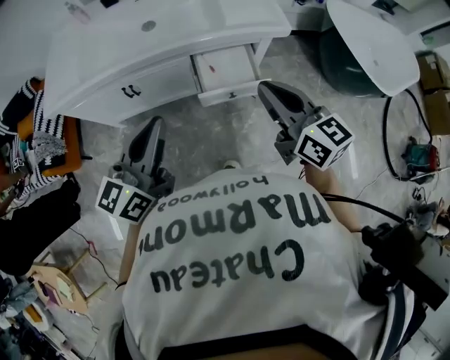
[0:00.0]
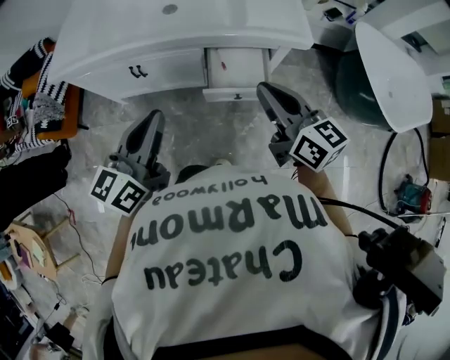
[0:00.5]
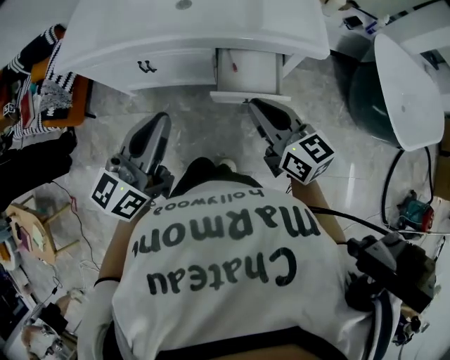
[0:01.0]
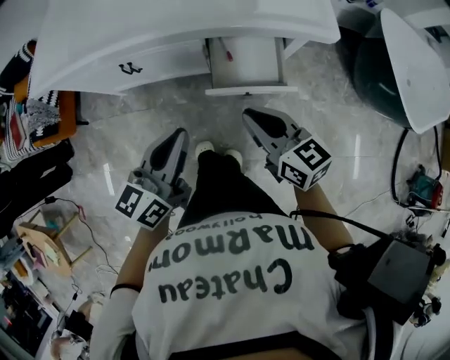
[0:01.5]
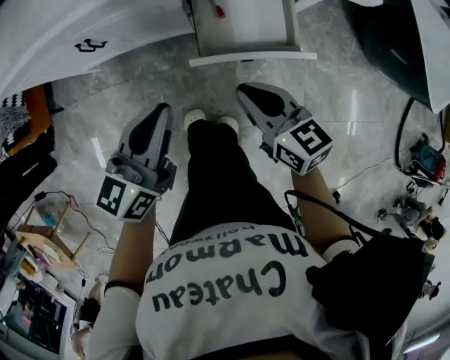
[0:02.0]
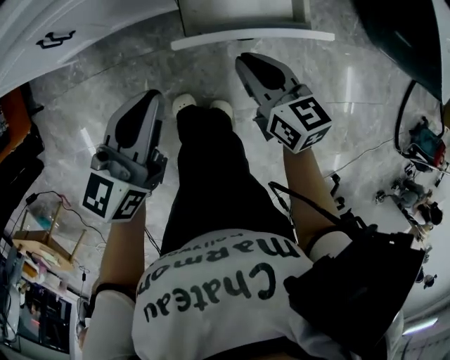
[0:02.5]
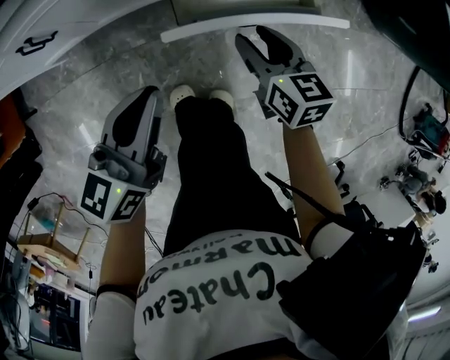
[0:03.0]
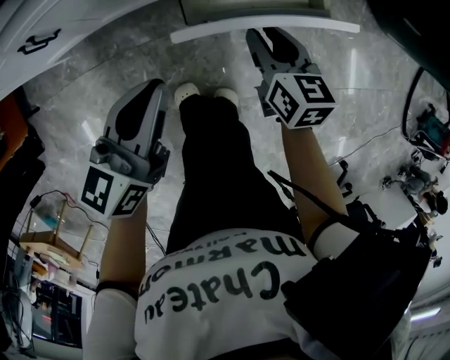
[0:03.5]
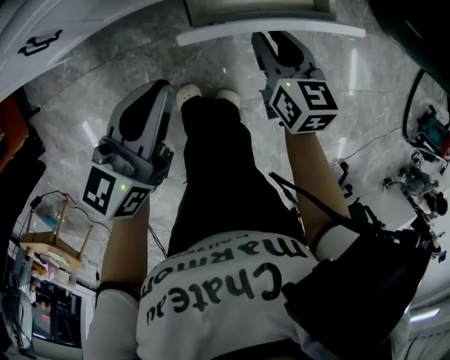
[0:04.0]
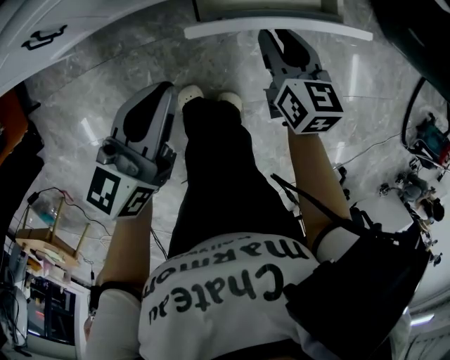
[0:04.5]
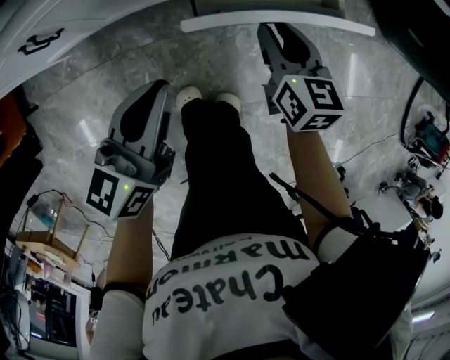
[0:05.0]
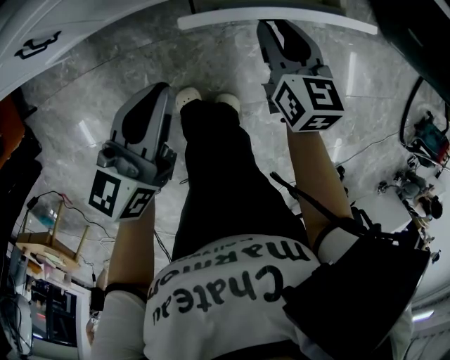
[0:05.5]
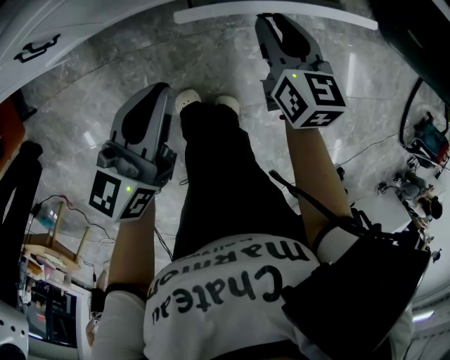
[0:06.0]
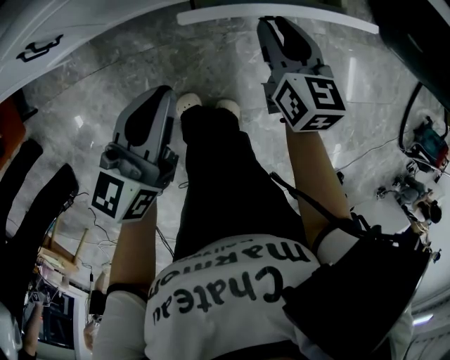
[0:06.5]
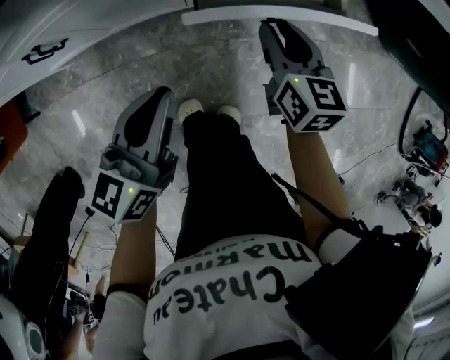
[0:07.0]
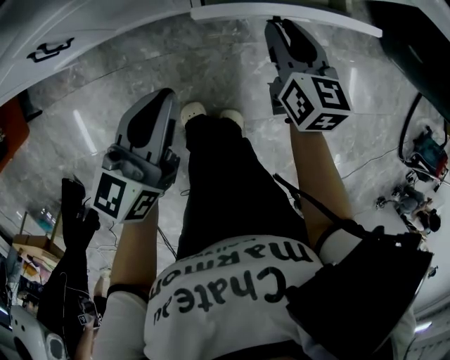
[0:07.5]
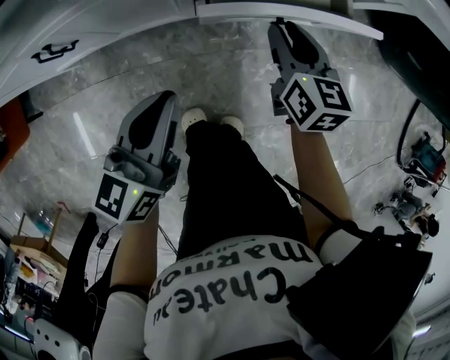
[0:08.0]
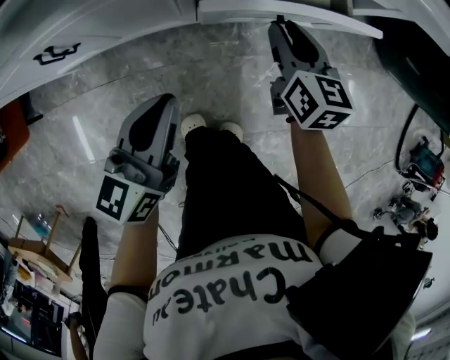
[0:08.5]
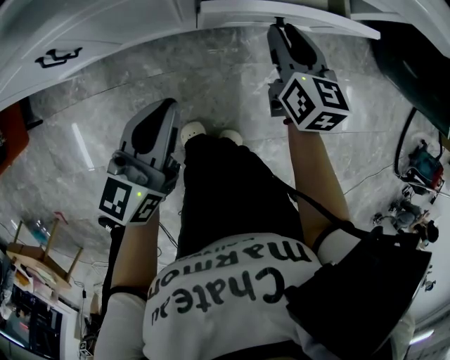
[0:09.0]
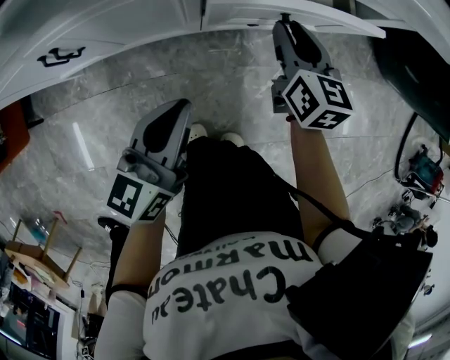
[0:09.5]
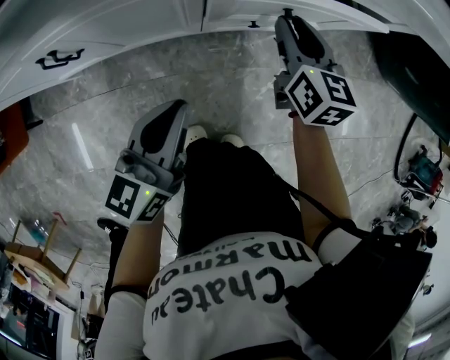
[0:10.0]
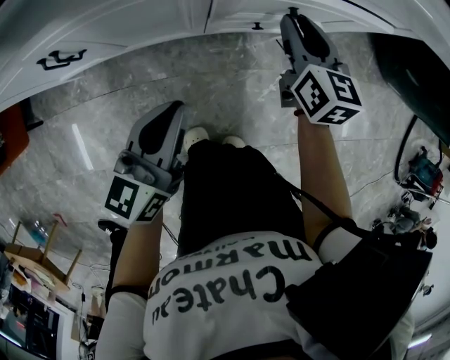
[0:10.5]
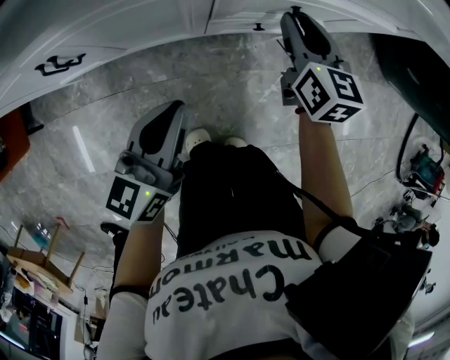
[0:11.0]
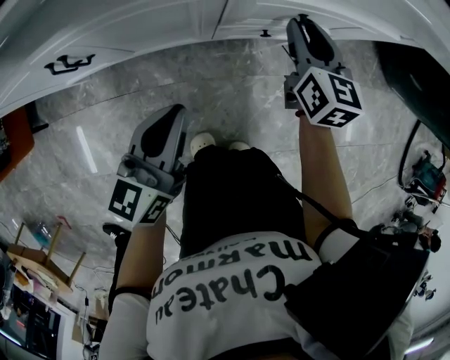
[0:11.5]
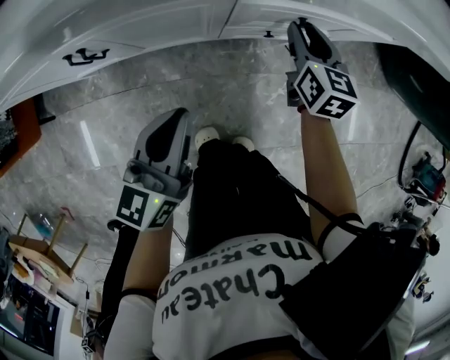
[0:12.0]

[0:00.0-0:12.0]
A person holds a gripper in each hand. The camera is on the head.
0:00.0 to 0:02.0: Both grippers move downward, approximately 25 cm. The right gripper swivels roughly 20 degrees.
0:02.0 to 0:04.0: The right gripper shifts some 15 cm downward and forward, swivels approximately 30 degrees, and opens its fingers. Meanwhile the left gripper goes approximately 10 cm downward.
0:04.0 to 0:06.0: The right gripper travels forward by roughly 5 cm.
0:06.0 to 0:08.0: The grippers stay close to where they were, moving slightly.
0:08.0 to 0:10.0: The right gripper shifts approximately 5 cm forward.
0:10.0 to 0:12.0: The grippers stay close to where they were, moving slightly.

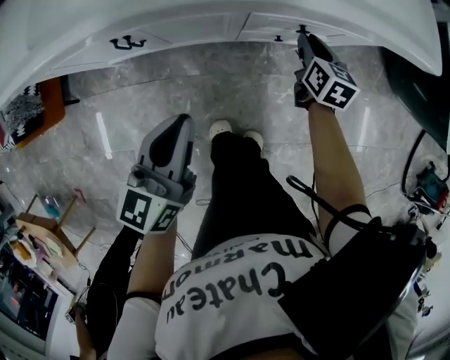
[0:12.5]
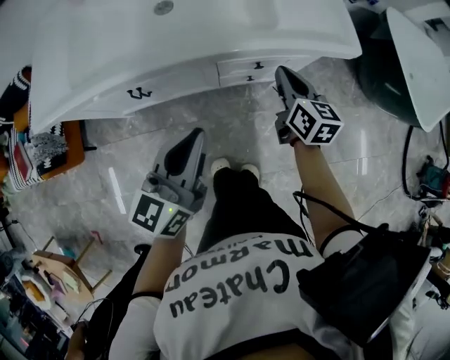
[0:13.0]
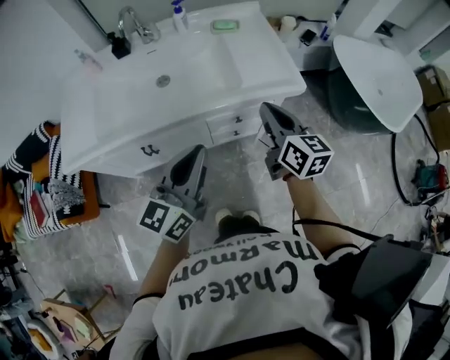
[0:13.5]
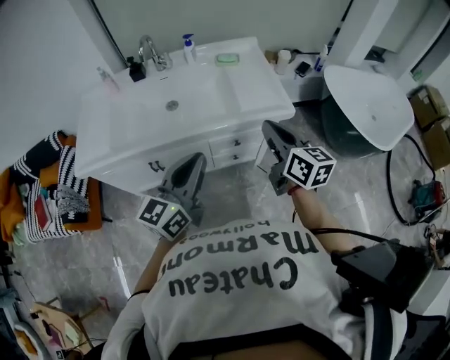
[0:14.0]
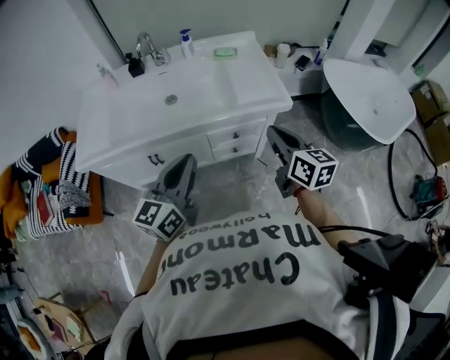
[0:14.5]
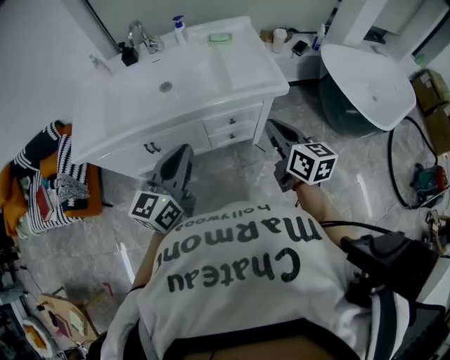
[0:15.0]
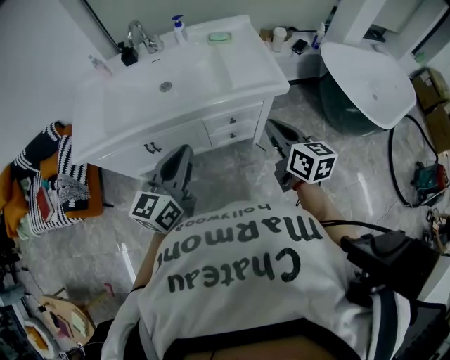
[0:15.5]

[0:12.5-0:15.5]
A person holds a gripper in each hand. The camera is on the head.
0:12.5 to 0:14.0: The two grippers go approximately 35 cm upward. The right gripper turns by some 30 degrees. The left gripper turns by approximately 30 degrees.
0:14.0 to 0:15.5: The right gripper is displaced downward by about 5 cm.

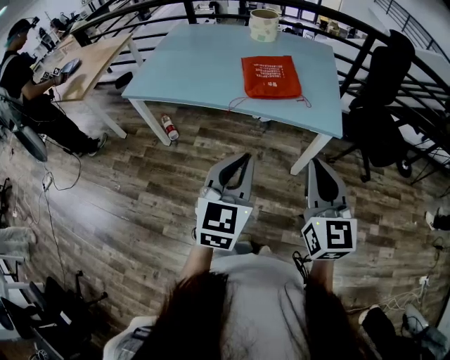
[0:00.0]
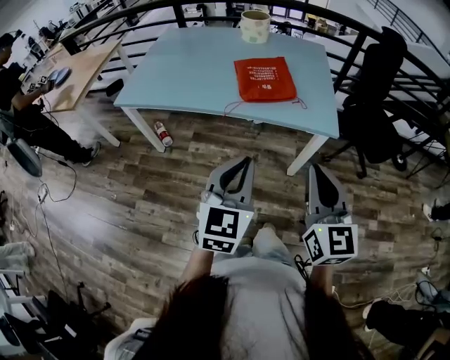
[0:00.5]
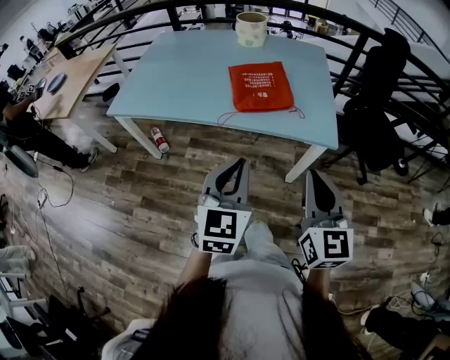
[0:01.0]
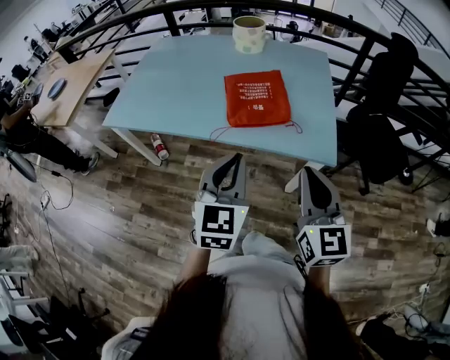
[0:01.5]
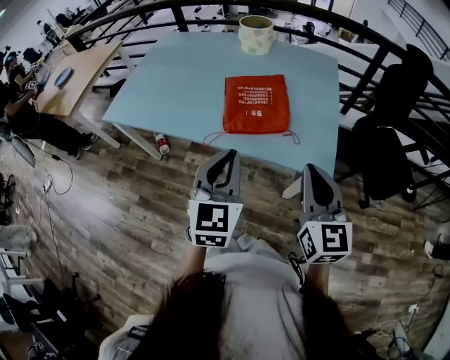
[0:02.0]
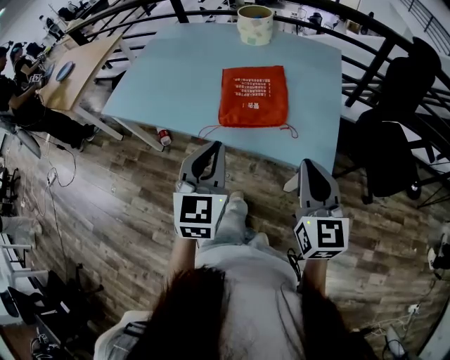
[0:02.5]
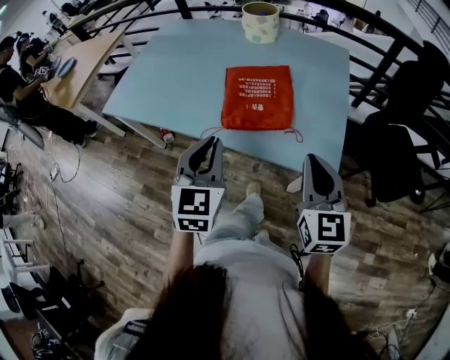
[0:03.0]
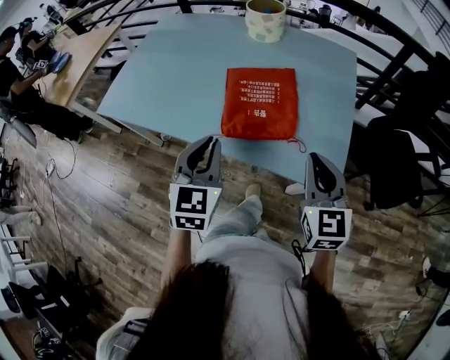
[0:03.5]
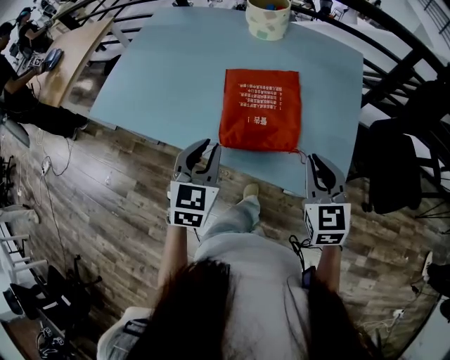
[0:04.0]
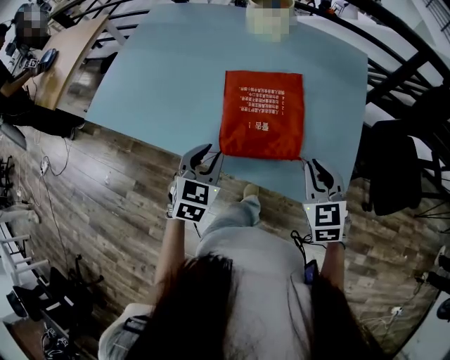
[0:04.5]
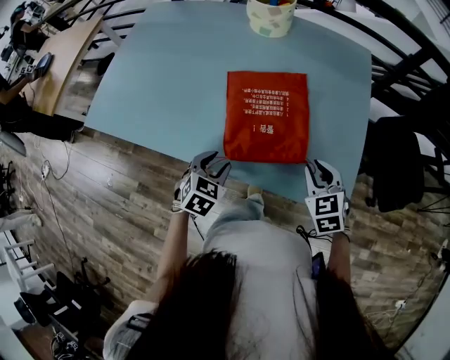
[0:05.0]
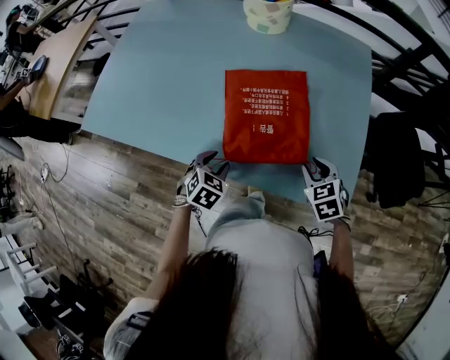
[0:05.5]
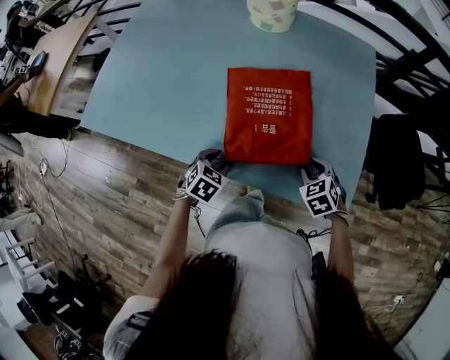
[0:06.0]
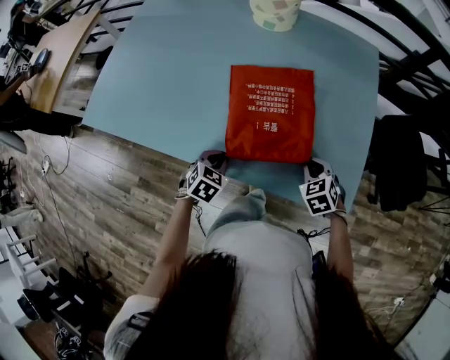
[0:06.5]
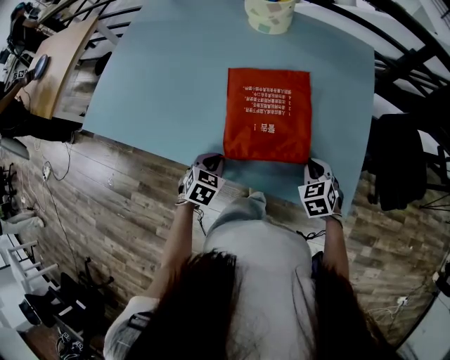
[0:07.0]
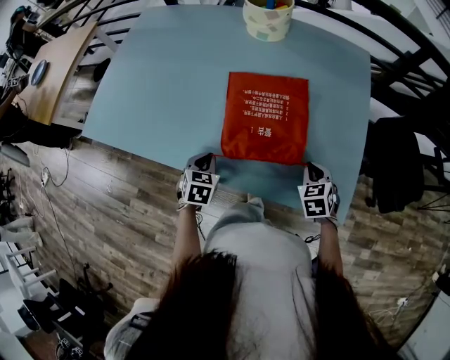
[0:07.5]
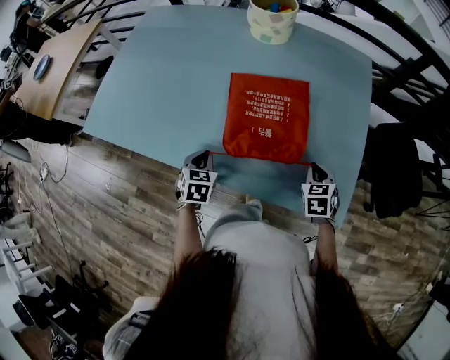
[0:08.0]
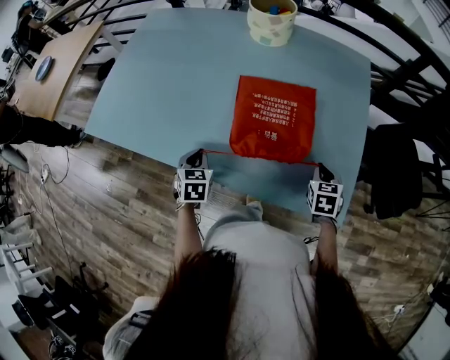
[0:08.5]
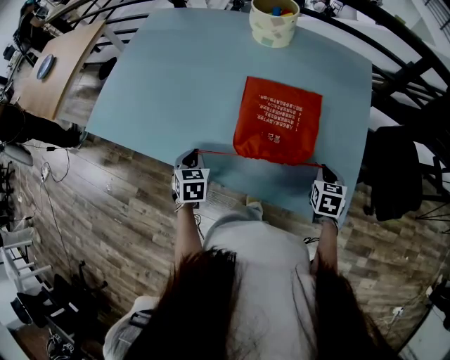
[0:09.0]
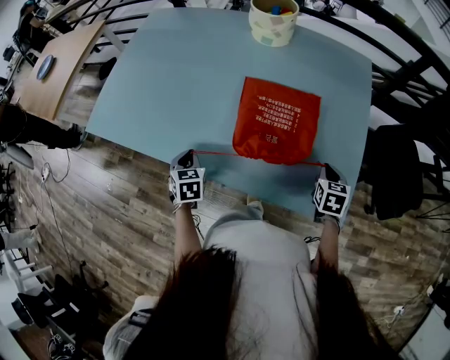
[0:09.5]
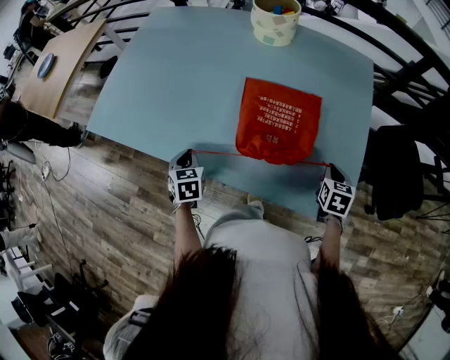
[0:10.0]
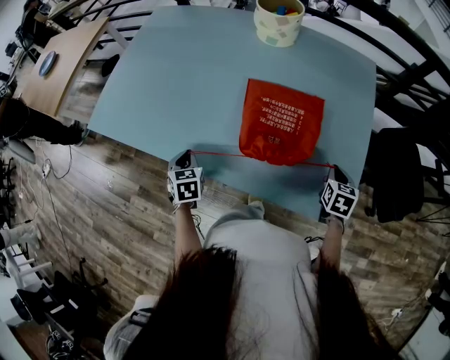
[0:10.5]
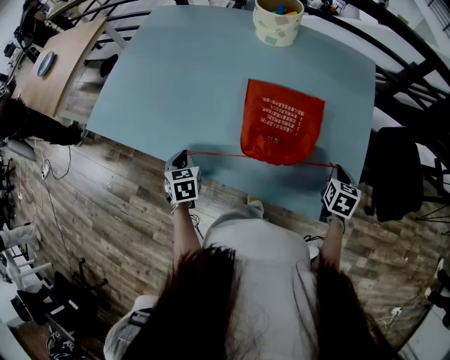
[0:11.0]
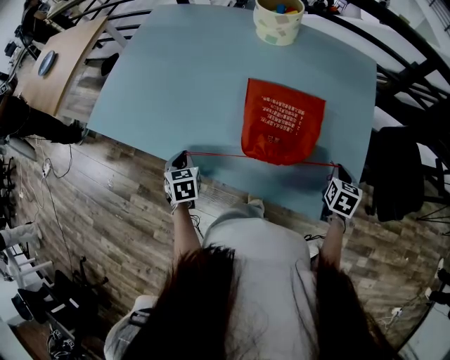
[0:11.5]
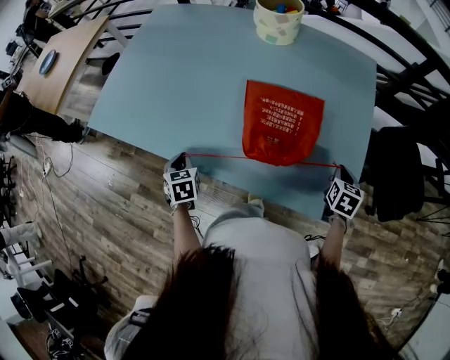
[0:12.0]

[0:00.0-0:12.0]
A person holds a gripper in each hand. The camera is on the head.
0:00.0 to 0:02.0: The left gripper shifts some 20 cm forward; the right gripper shifts roughly 25 cm forward and to the right.
0:02.0 to 0:04.0: Both grippers move forward and downward, roughly 20 cm. The right gripper changes its angle by approximately 20 degrees.
0:04.0 to 0:06.0: Both grippers travel together downward, approximately 20 cm. The left gripper tilts its fingers roughly 30 degrees downward, and opens up; the right gripper points its fingers about 40 degrees further downward, and opens.
0:06.0 to 0:08.0: The left gripper is displaced to the left by some 5 cm, rotates approximately 30 degrees, and closes up, while the right gripper rotates roughly 20 degrees, and closes.
0:08.0 to 0:10.0: The right gripper is displaced to the right by about 5 cm, while the left gripper shifts about 5 cm to the left.
0:10.0 to 0:12.0: The grippers make only small movements.
